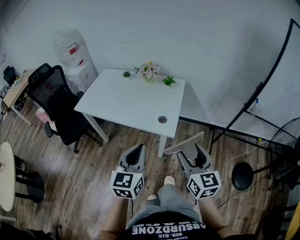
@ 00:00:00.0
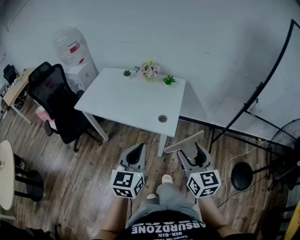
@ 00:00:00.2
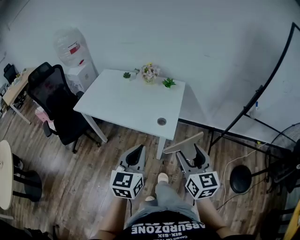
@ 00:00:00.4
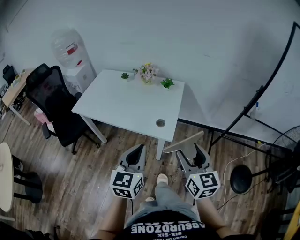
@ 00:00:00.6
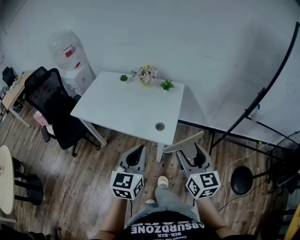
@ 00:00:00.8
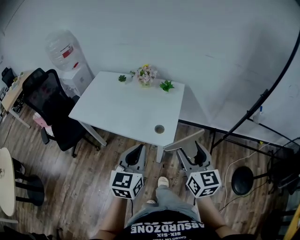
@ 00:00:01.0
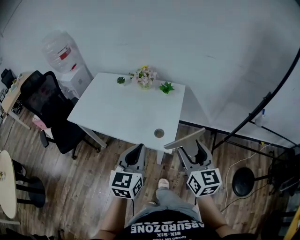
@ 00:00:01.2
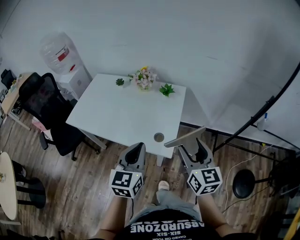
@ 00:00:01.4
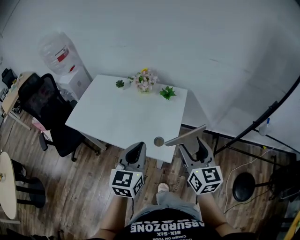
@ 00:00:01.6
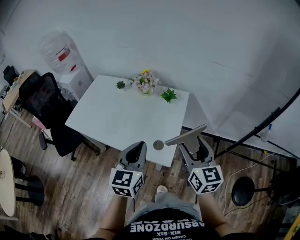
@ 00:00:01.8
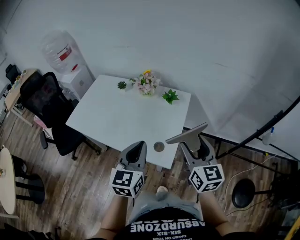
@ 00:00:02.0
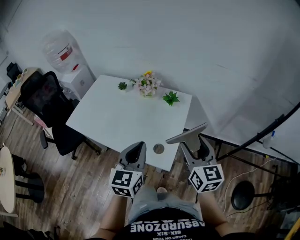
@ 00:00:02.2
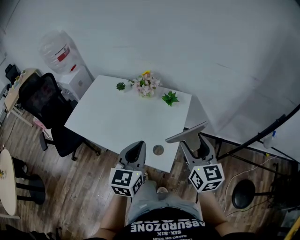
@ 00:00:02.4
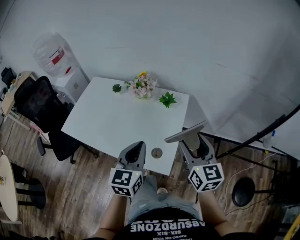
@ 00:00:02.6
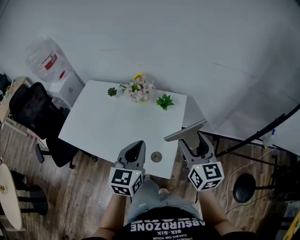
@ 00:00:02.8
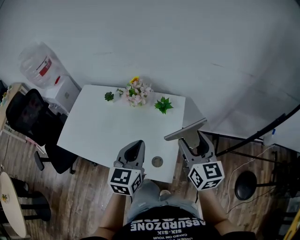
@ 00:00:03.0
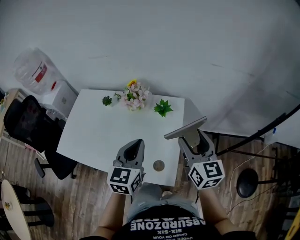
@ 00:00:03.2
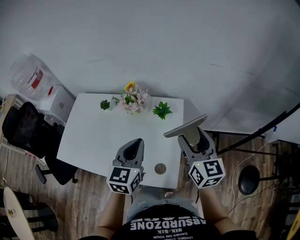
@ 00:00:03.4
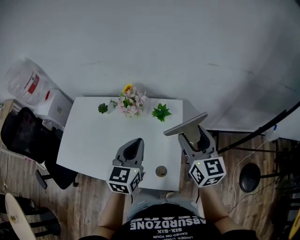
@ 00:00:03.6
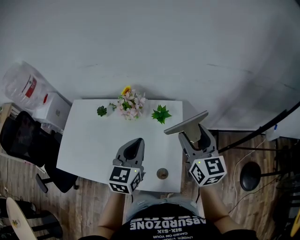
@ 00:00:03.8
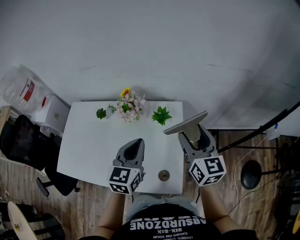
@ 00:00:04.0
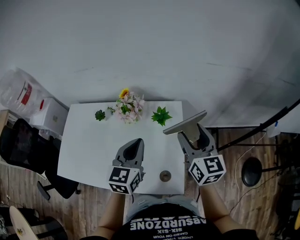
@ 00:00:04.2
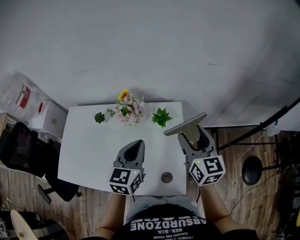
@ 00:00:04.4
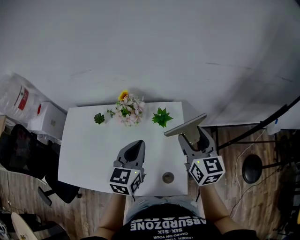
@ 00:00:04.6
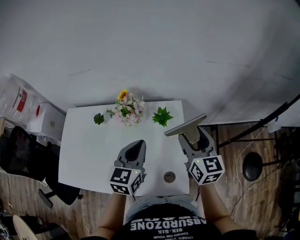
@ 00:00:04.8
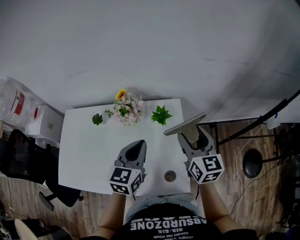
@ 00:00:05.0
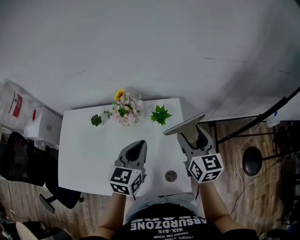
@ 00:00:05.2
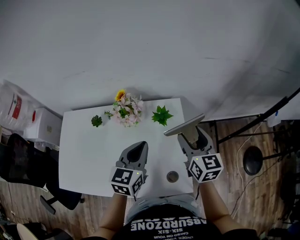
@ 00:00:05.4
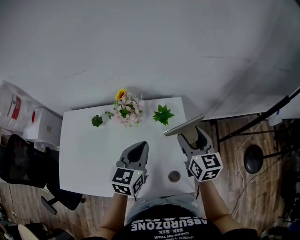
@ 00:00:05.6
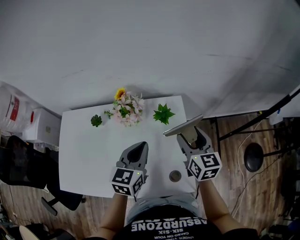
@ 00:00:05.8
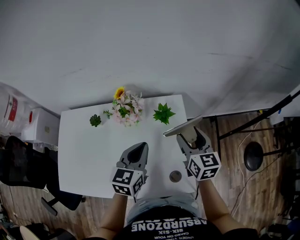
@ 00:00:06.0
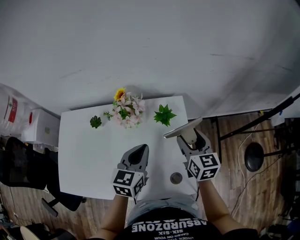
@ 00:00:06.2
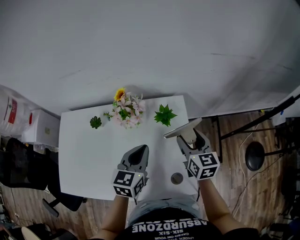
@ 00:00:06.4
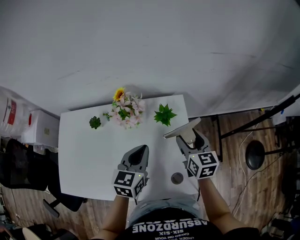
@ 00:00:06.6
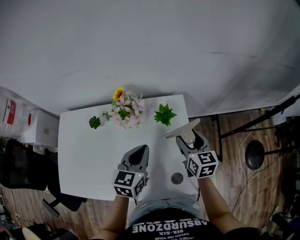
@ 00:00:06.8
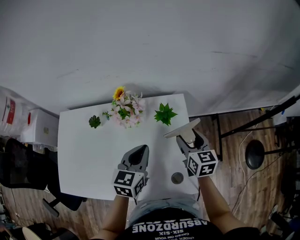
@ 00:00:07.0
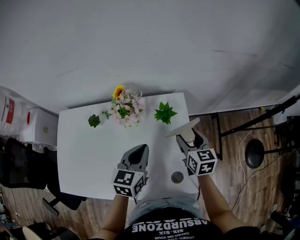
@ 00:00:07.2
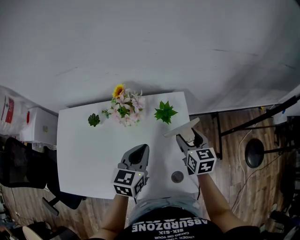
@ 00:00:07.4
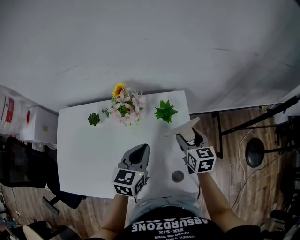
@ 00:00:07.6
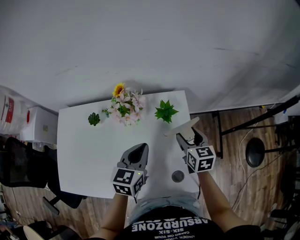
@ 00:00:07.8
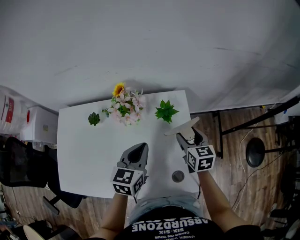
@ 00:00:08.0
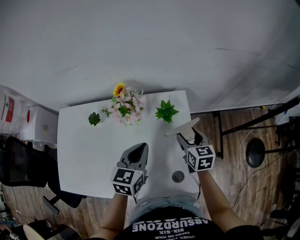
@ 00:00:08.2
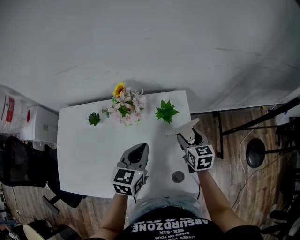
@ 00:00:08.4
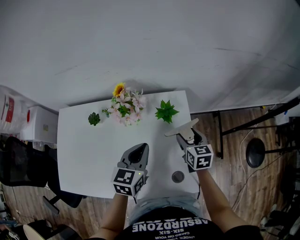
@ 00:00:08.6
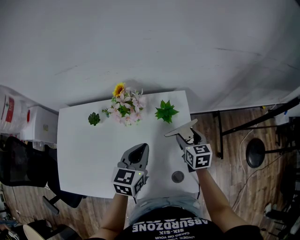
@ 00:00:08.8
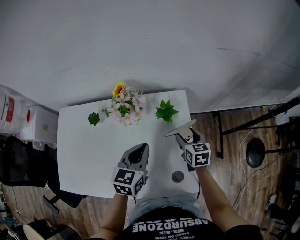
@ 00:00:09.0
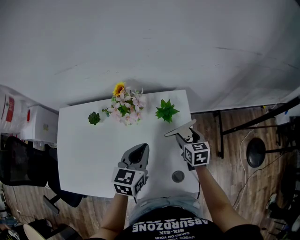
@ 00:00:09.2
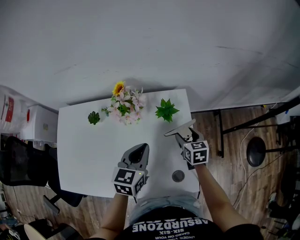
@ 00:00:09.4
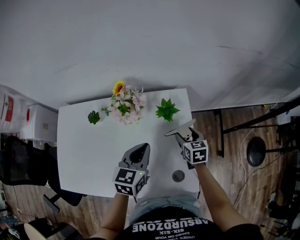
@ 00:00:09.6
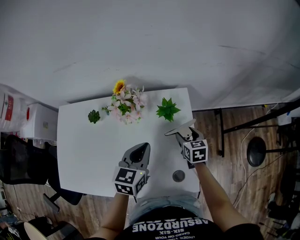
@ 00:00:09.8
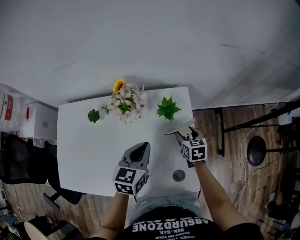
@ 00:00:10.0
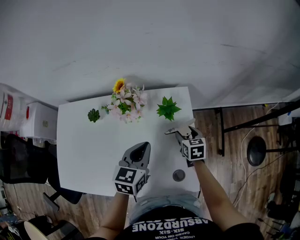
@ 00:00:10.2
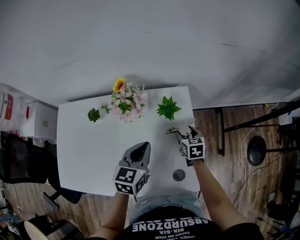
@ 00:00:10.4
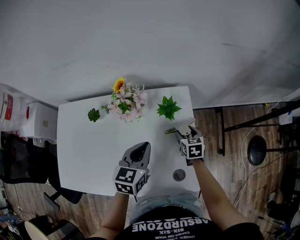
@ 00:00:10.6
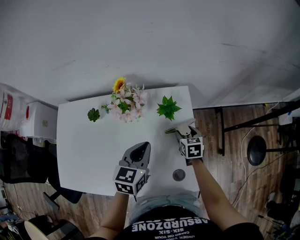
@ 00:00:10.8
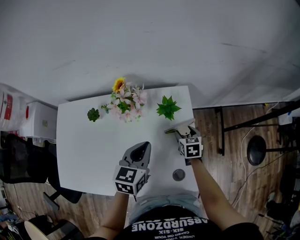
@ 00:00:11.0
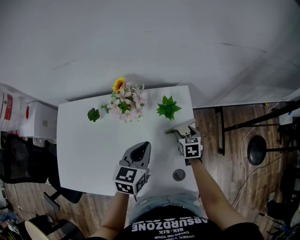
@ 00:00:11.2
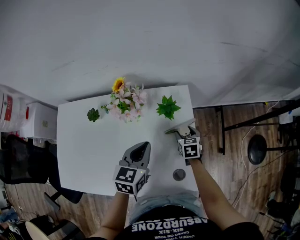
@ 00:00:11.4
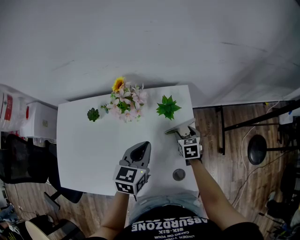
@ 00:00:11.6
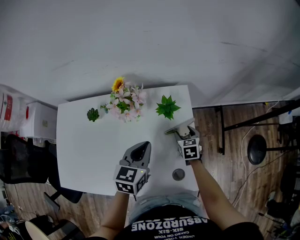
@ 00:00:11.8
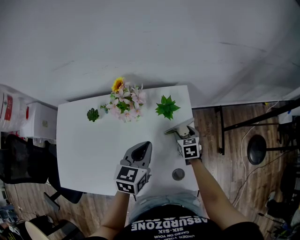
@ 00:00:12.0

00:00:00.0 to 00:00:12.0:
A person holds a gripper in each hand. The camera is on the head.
00:00:00.0 to 00:00:01.6: Both grippers travel together forward, about 20 cm.
00:00:01.6 to 00:00:03.0: Both grippers move forward, approximately 15 cm.
00:00:03.0 to 00:00:04.4: The two grippers go about 10 cm forward.
00:00:04.4 to 00:00:06.0: The right gripper moves downward, some 10 cm, while the left gripper heads downward, covering about 5 cm.
00:00:06.0 to 00:00:07.6: The right gripper goes about 10 cm downward.
00:00:07.6 to 00:00:09.0: The right gripper travels downward by approximately 5 cm.
00:00:09.0 to 00:00:10.4: The right gripper moves downward, about 5 cm.
00:00:10.4 to 00:00:12.0: There are only small adjustments of the grippers.

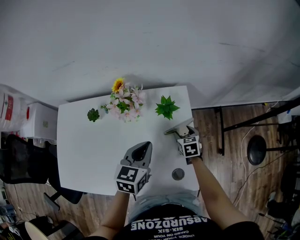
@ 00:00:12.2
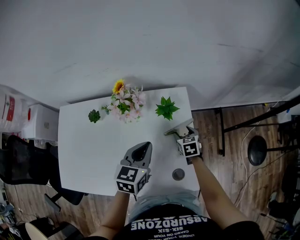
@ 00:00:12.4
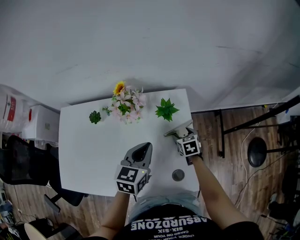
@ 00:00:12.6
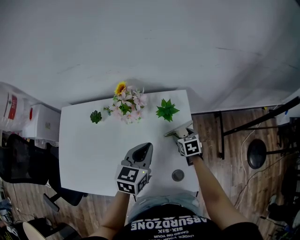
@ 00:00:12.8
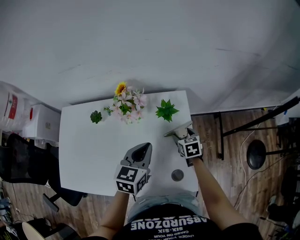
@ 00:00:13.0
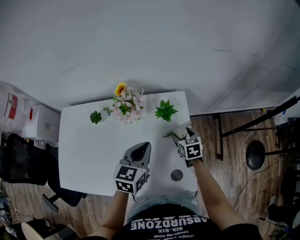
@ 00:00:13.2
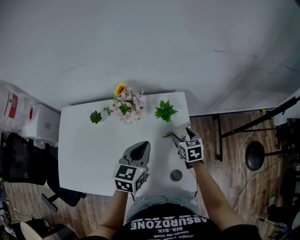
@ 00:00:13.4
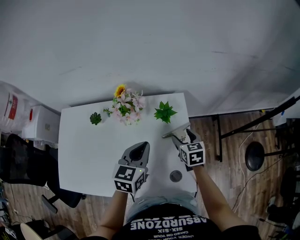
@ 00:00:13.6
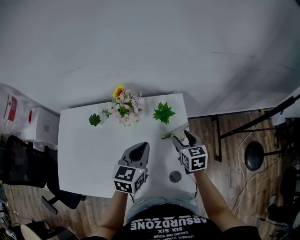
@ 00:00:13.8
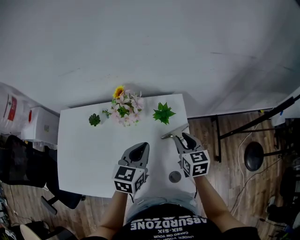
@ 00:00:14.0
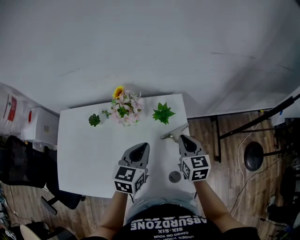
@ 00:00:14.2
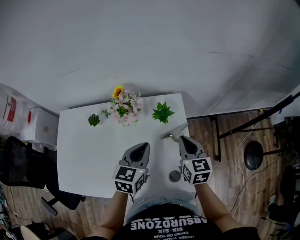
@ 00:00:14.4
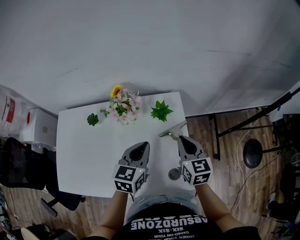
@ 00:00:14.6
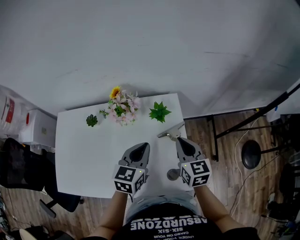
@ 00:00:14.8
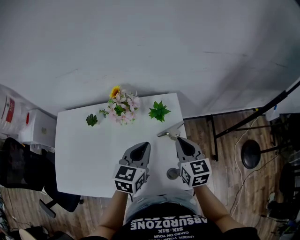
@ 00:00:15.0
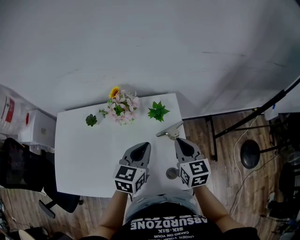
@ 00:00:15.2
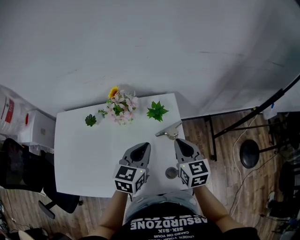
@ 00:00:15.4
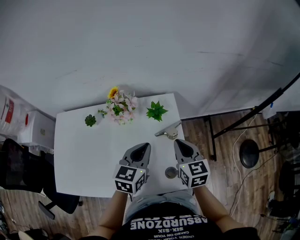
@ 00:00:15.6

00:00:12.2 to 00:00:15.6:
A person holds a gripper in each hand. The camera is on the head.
00:00:12.2 to 00:00:13.8: The right gripper is displaced upward by some 15 cm.
00:00:13.8 to 00:00:15.6: The right gripper moves upward and backward, approximately 10 cm, and closes its fingers.

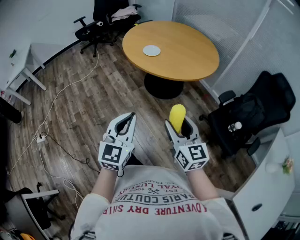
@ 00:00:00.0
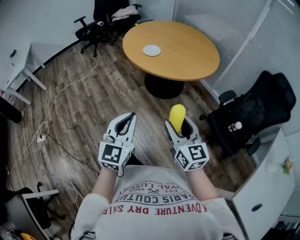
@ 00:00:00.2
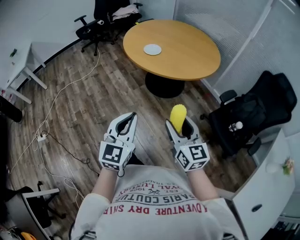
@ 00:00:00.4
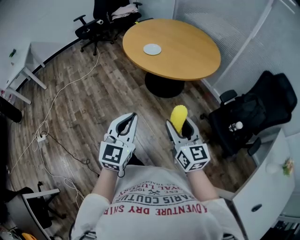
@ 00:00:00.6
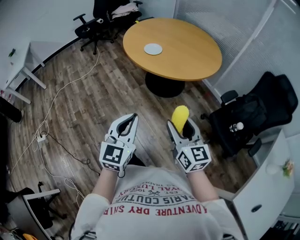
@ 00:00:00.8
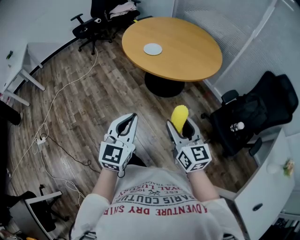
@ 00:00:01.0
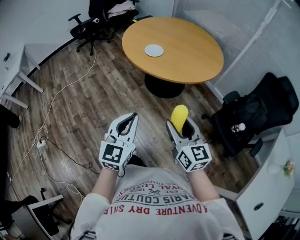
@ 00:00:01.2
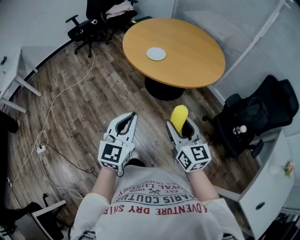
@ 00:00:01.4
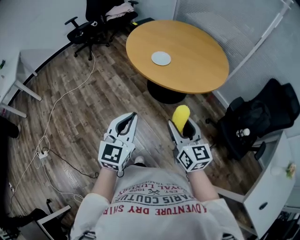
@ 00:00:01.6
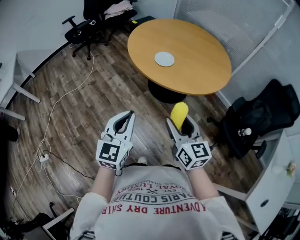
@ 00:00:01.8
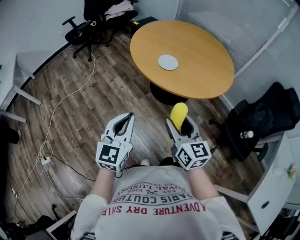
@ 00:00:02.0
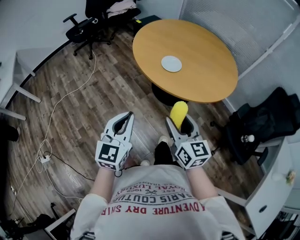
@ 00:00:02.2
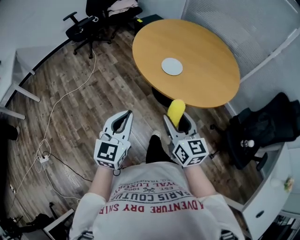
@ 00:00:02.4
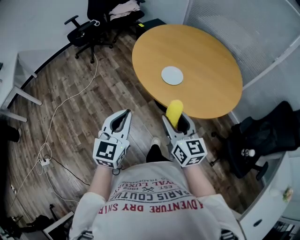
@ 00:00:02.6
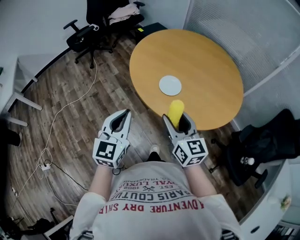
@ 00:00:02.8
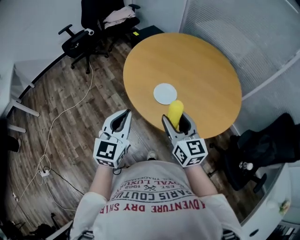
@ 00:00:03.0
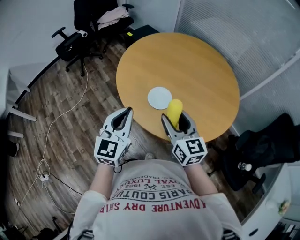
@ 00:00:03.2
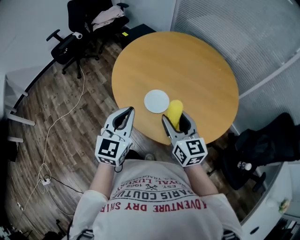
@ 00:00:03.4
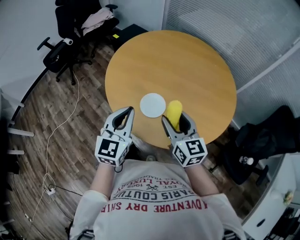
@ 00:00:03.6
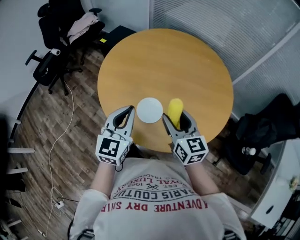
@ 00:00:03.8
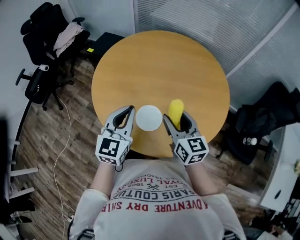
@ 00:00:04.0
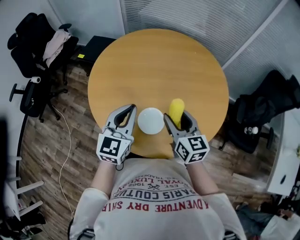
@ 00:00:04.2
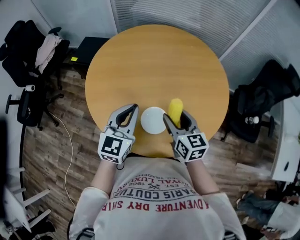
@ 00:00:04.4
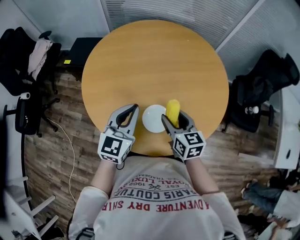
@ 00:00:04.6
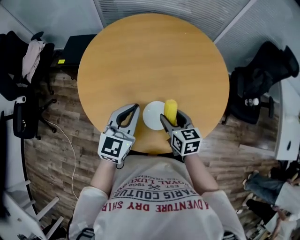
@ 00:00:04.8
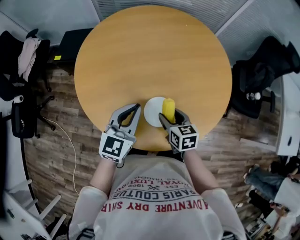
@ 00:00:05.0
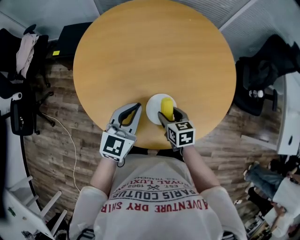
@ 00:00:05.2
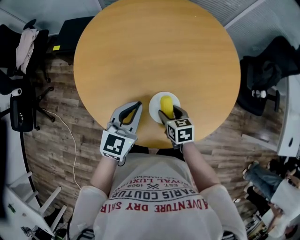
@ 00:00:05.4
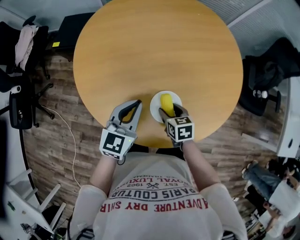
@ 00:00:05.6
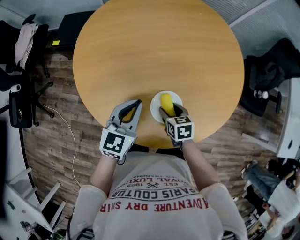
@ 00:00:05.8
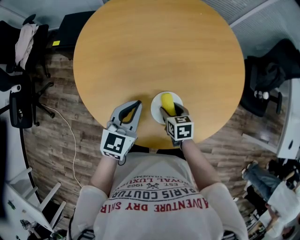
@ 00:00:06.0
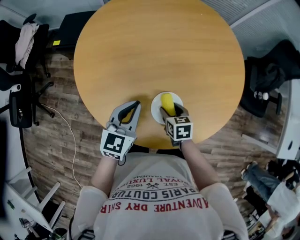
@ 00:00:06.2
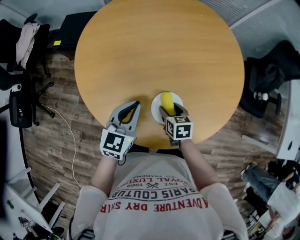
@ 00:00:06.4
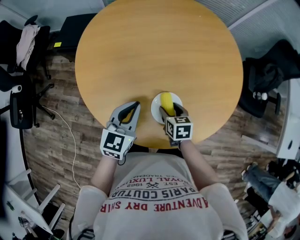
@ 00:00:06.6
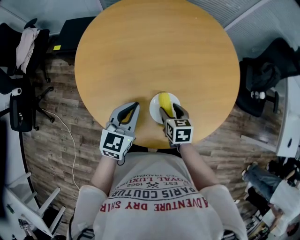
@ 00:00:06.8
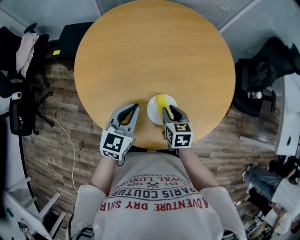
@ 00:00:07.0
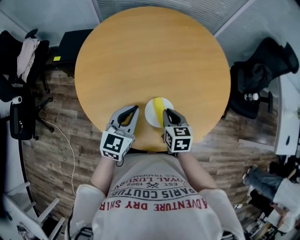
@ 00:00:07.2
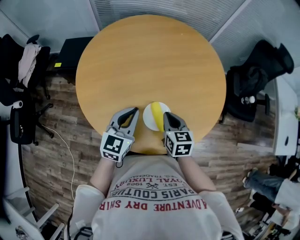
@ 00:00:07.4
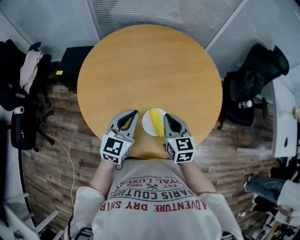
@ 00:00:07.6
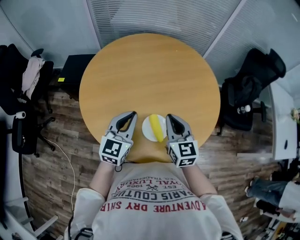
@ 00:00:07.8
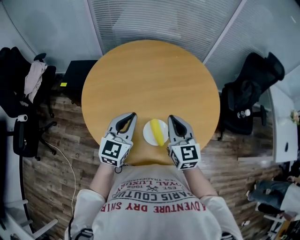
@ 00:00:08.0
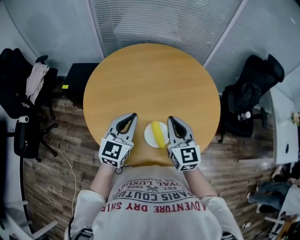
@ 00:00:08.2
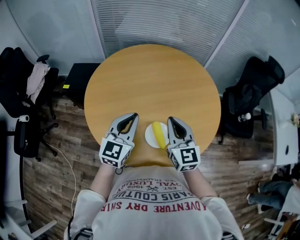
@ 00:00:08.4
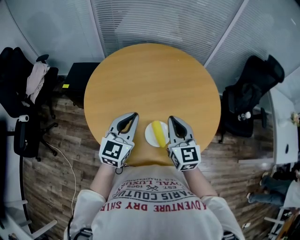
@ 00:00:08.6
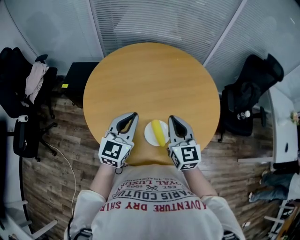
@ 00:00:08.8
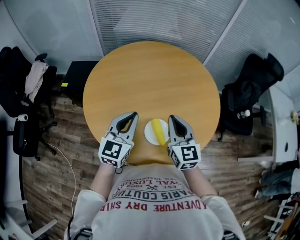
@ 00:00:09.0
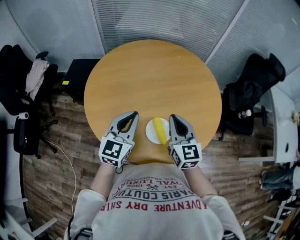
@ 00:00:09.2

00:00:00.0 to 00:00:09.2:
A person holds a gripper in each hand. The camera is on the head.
00:00:00.0 to 00:00:01.6: The grippers both shift forward and to the left by roughly 20 cm.
00:00:01.6 to 00:00:03.0: The grippers both shift forward by approximately 35 cm.
00:00:03.0 to 00:00:04.6: The right gripper moves some 25 cm, and rotates about 40 degrees, while the left gripper changes place by approximately 30 cm, and rotates about 50 degrees.
00:00:04.6 to 00:00:06.2: The left gripper travels downward by some 10 cm; the right gripper moves downward, roughly 20 cm, and changes its angle by roughly 30 degrees.
00:00:06.2 to 00:00:07.6: The left gripper shifts roughly 5 cm upward. The right gripper shifts roughly 20 cm upward, changes its angle by approximately 30 degrees, and closes.
00:00:07.6 to 00:00:09.2: The two grippers go roughly 5 cm upward.
